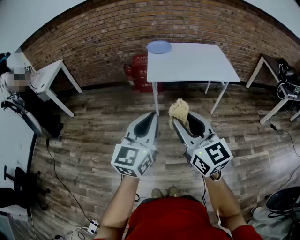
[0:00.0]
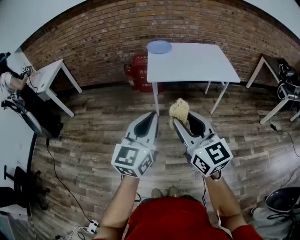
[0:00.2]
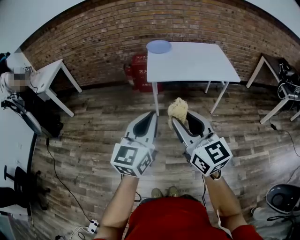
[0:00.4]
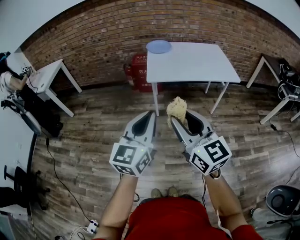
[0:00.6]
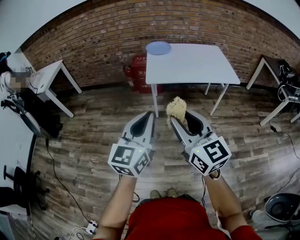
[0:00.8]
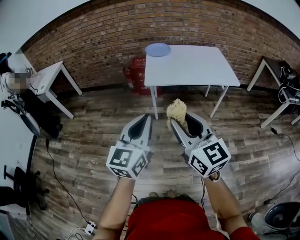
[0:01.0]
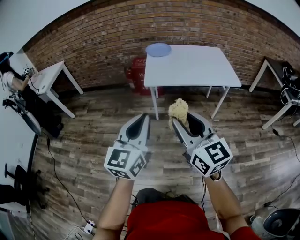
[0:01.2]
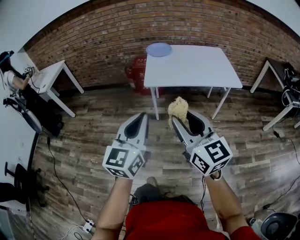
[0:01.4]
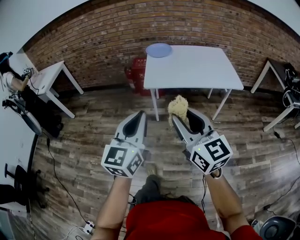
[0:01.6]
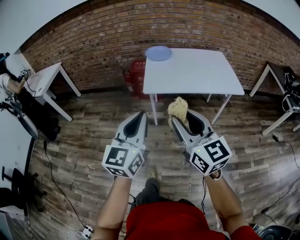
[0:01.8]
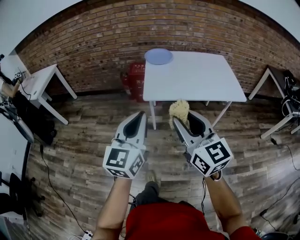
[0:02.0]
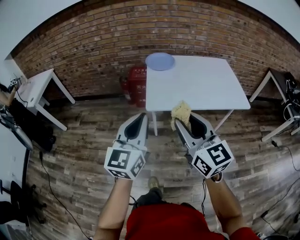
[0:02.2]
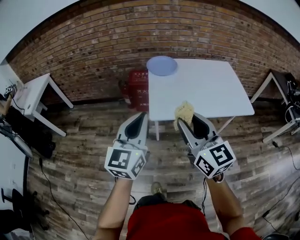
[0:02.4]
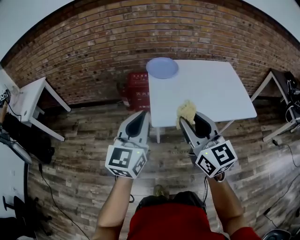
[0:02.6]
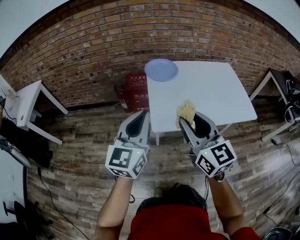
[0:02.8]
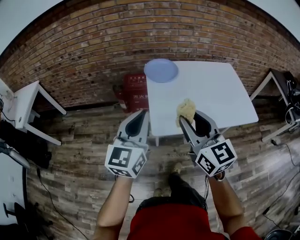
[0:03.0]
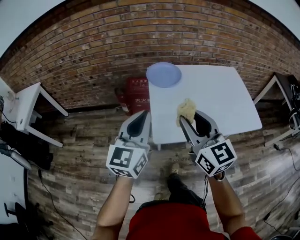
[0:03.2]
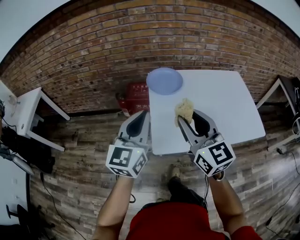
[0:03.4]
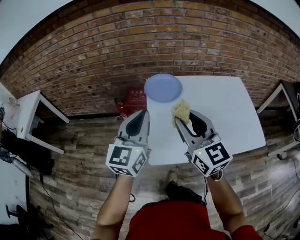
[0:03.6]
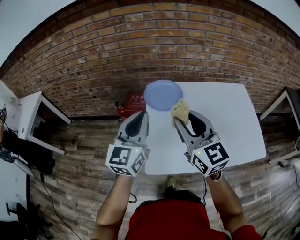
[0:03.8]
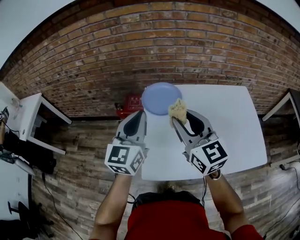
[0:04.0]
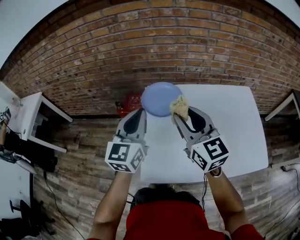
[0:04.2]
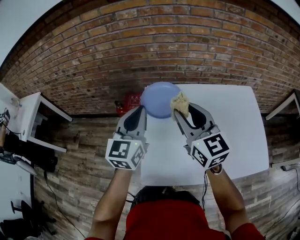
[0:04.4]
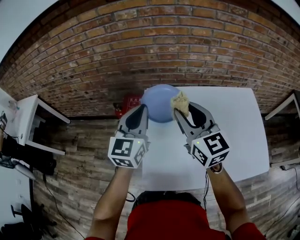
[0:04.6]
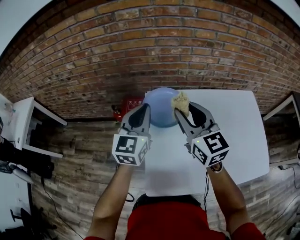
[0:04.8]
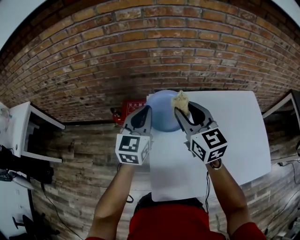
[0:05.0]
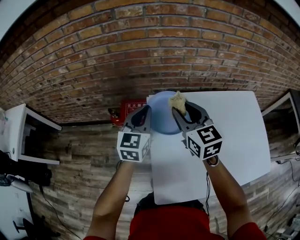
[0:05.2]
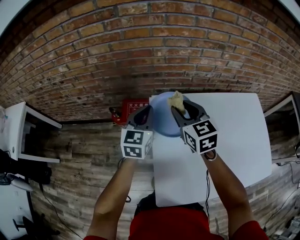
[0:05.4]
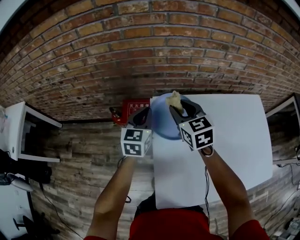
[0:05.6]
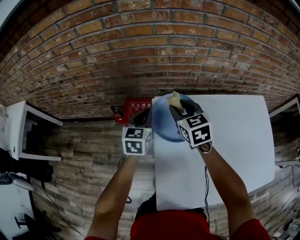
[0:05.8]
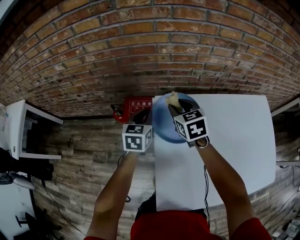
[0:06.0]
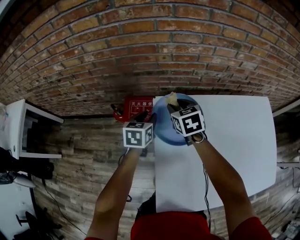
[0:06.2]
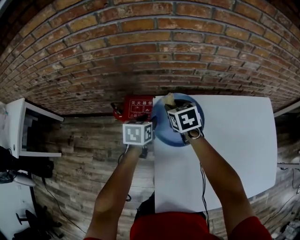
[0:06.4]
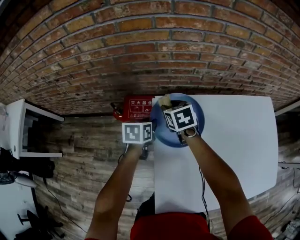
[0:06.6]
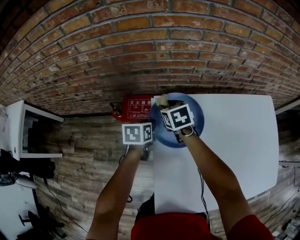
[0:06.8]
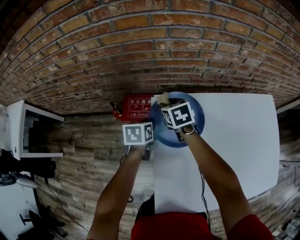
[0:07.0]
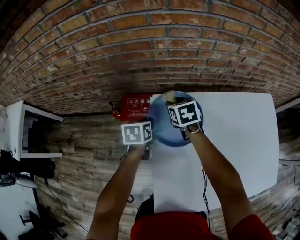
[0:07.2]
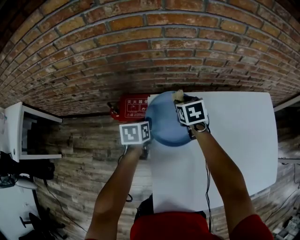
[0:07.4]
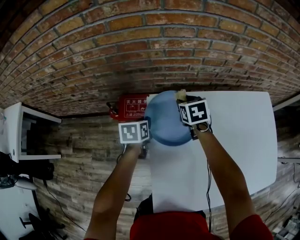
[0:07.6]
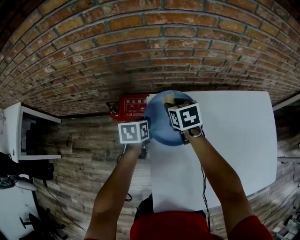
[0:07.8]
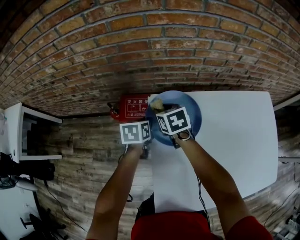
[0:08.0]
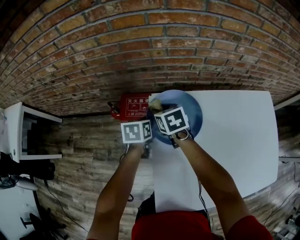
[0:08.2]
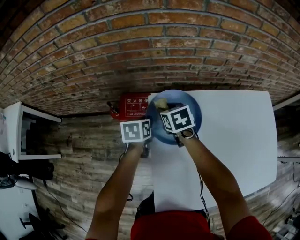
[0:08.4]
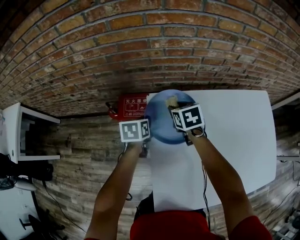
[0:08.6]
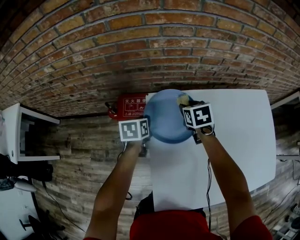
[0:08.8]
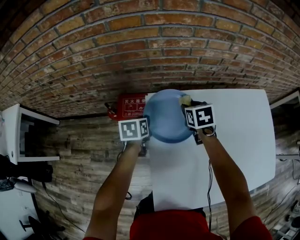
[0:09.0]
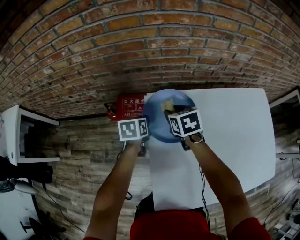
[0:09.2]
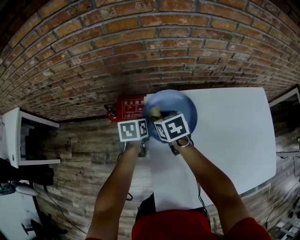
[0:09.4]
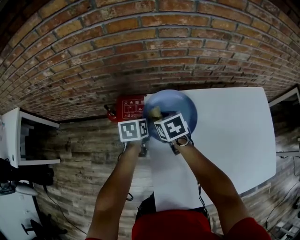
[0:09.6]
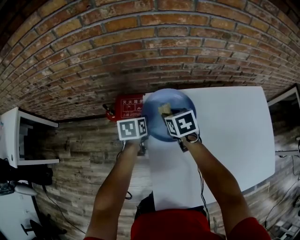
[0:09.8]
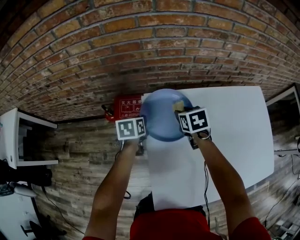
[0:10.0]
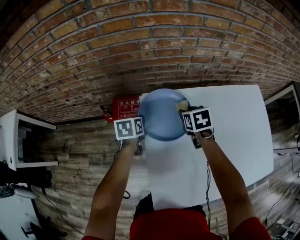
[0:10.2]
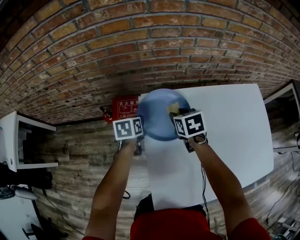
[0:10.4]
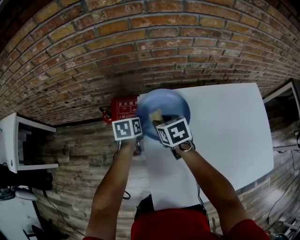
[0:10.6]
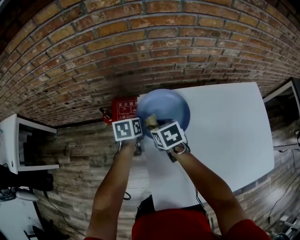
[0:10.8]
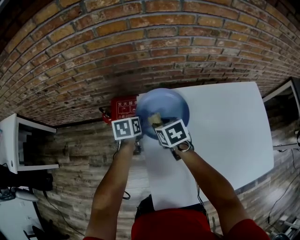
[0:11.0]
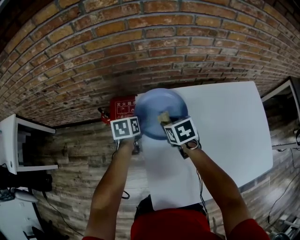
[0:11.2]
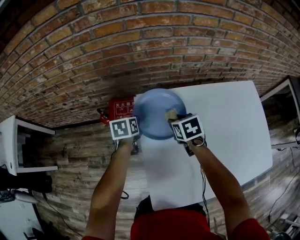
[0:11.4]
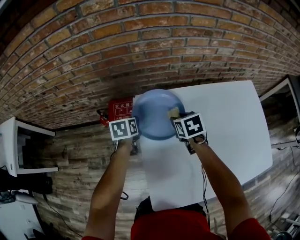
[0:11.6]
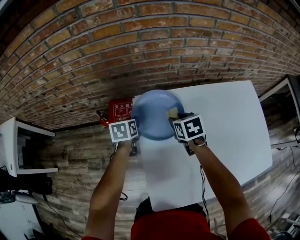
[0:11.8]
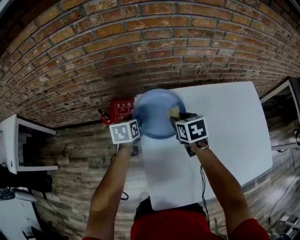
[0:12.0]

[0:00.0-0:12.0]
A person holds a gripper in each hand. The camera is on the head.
0:00.0 to 0:01.6: The right gripper travels forward and to the right by some 10 cm, while the left gripper is displaced forward by about 5 cm.
0:01.6 to 0:03.0: Both grippers move forward, about 40 cm.
0:03.0 to 0:04.4: Both grippers move forward, approximately 30 cm.
0:04.4 to 0:06.0: The grippers both shift forward and downward by about 30 cm. The left gripper changes its angle by approximately 30 degrees; the right gripper points its fingers approximately 30 degrees further downward.
0:06.0 to 0:07.6: The right gripper is displaced downward and to the right by roughly 10 cm. The left gripper moves downward, roughly 10 cm, changes its angle by some 30 degrees, and opens, then closes again.
0:07.6 to 0:09.0: The right gripper reaches approximately 10 cm to the left, then returns.
0:09.0 to 0:10.4: The right gripper moves left and right over about 15 cm, changing direction 2 times.
0:10.4 to 0:12.0: The right gripper reaches approximately 10 cm to the left, then returns. The left gripper opens.

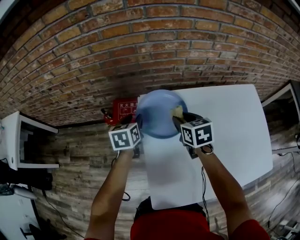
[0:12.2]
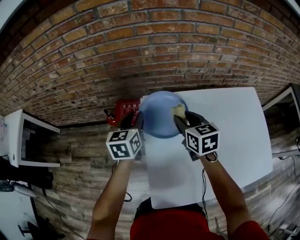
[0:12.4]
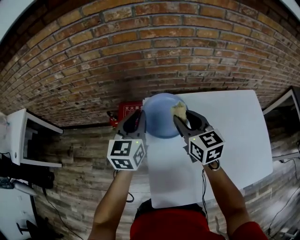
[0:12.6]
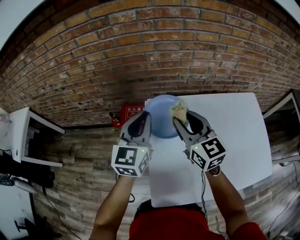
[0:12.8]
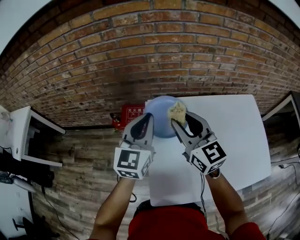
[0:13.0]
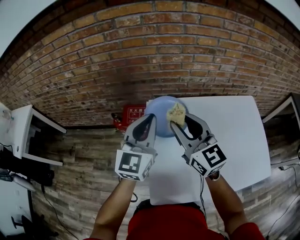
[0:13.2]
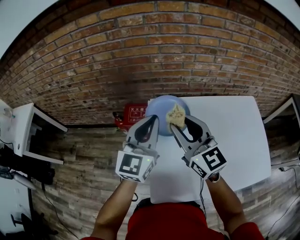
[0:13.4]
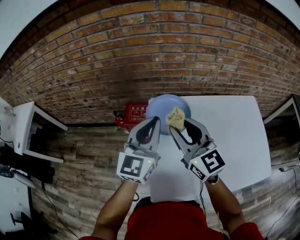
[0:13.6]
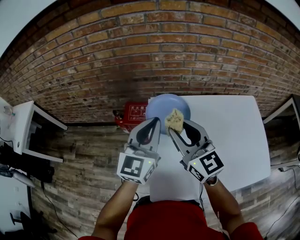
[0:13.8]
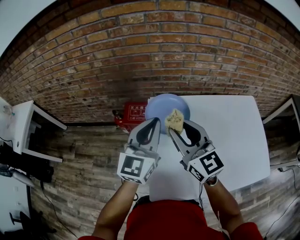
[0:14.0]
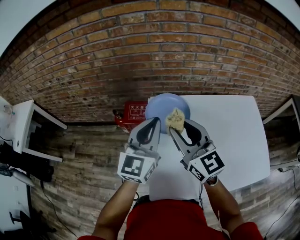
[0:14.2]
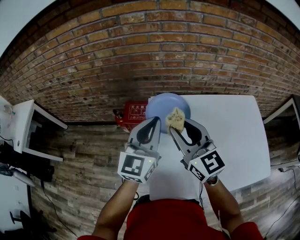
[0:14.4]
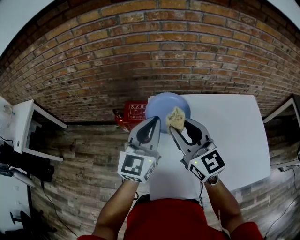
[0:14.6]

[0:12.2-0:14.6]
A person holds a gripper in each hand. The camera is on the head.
0:12.2 to 0:13.4: Both grippers travel together upward and backward, about 25 cm. The left gripper angles its fingers upward, by roughly 40 degrees, and closes its fingers. Meanwhile the right gripper points its fingers roughly 40 degrees further upward.
0:13.4 to 0:14.6: The grippers make only small movements.

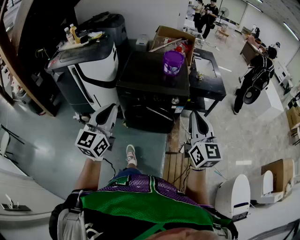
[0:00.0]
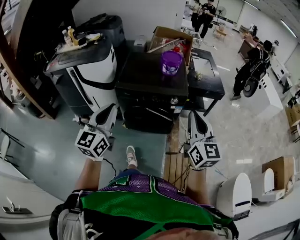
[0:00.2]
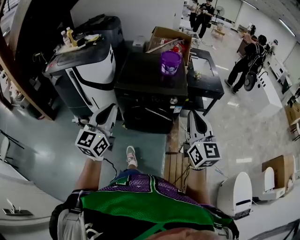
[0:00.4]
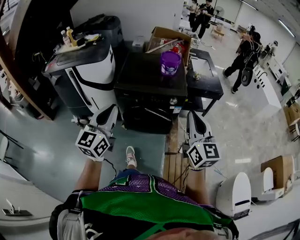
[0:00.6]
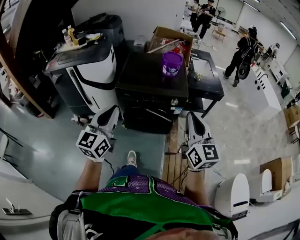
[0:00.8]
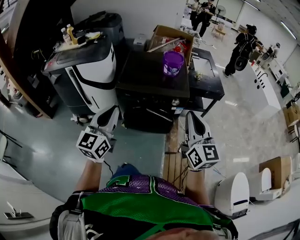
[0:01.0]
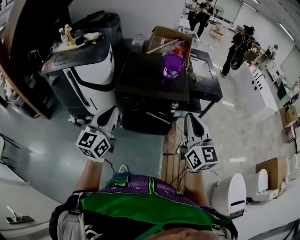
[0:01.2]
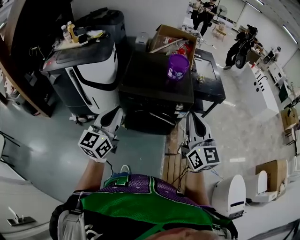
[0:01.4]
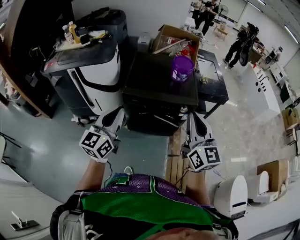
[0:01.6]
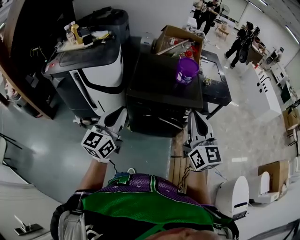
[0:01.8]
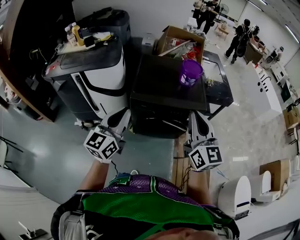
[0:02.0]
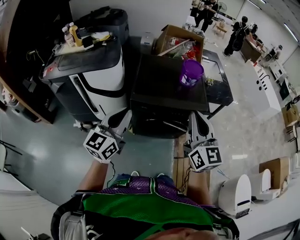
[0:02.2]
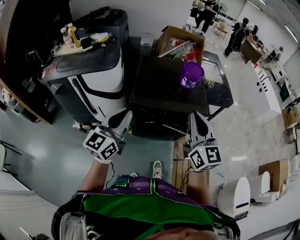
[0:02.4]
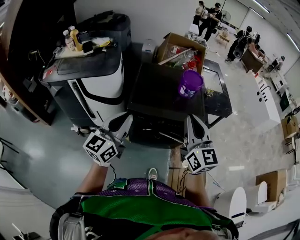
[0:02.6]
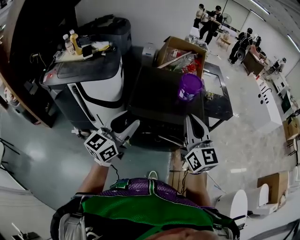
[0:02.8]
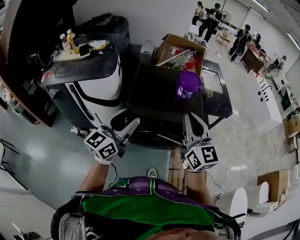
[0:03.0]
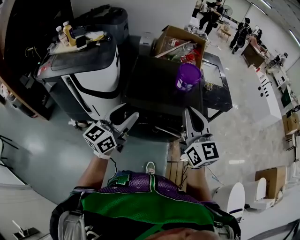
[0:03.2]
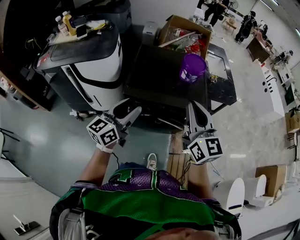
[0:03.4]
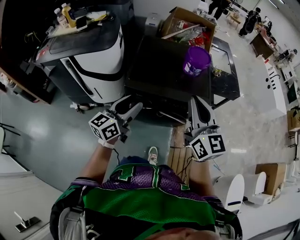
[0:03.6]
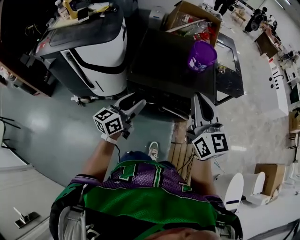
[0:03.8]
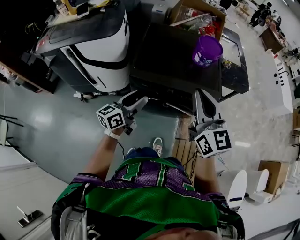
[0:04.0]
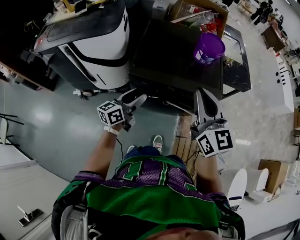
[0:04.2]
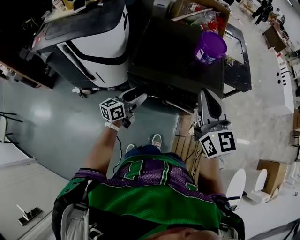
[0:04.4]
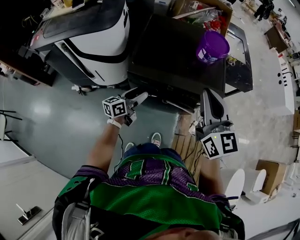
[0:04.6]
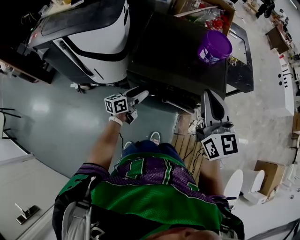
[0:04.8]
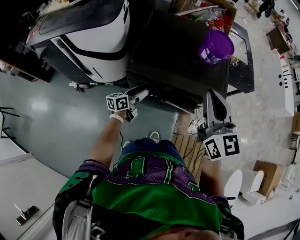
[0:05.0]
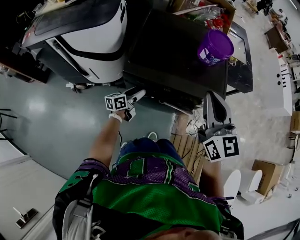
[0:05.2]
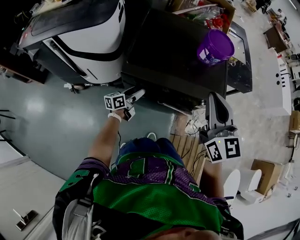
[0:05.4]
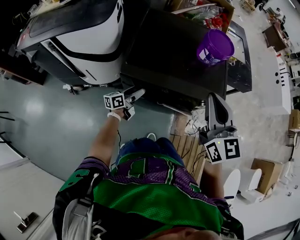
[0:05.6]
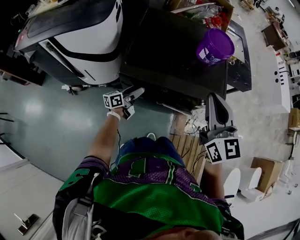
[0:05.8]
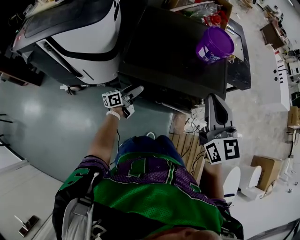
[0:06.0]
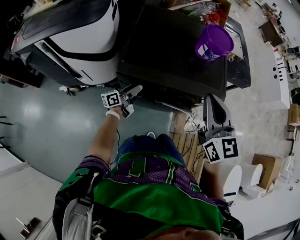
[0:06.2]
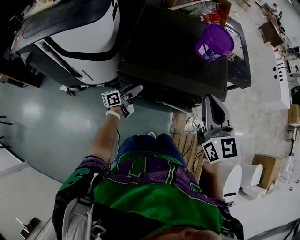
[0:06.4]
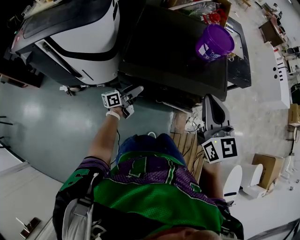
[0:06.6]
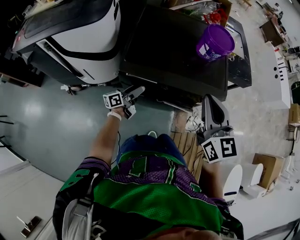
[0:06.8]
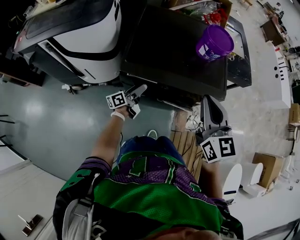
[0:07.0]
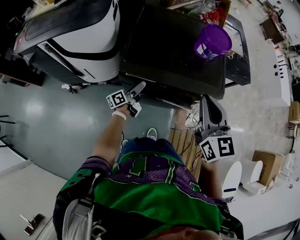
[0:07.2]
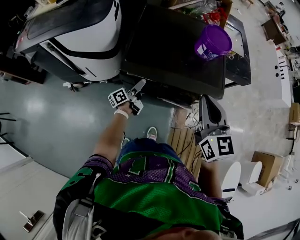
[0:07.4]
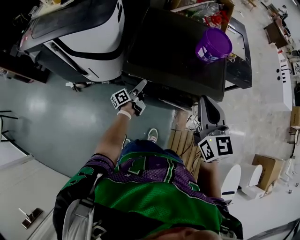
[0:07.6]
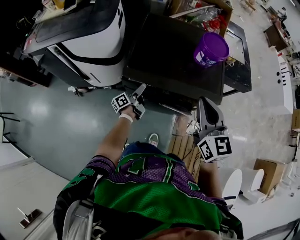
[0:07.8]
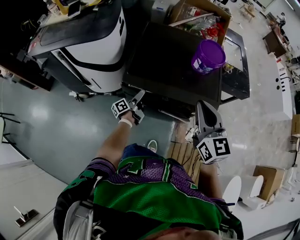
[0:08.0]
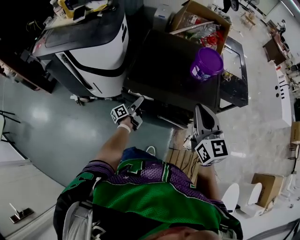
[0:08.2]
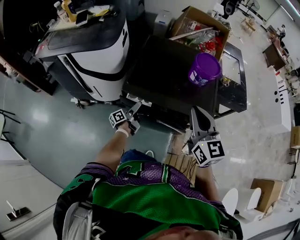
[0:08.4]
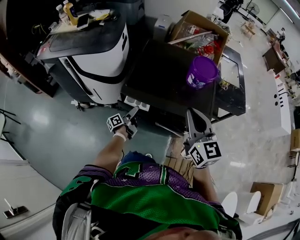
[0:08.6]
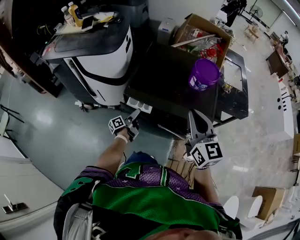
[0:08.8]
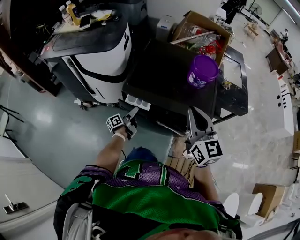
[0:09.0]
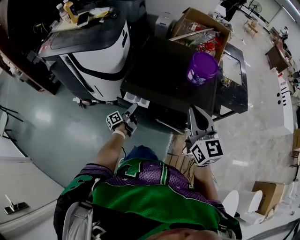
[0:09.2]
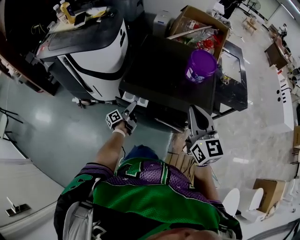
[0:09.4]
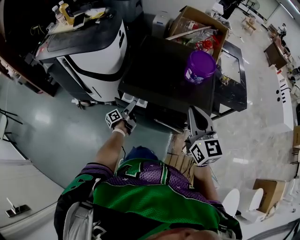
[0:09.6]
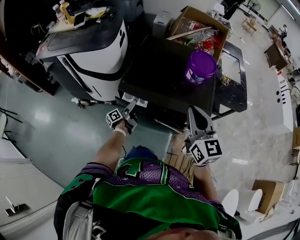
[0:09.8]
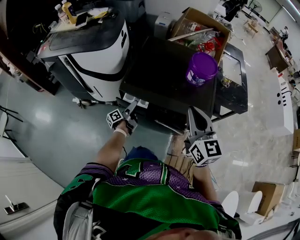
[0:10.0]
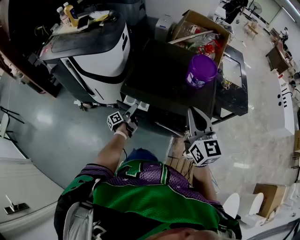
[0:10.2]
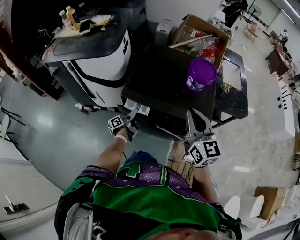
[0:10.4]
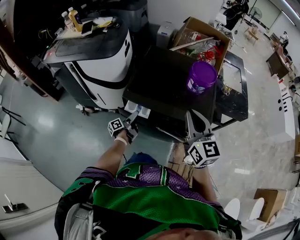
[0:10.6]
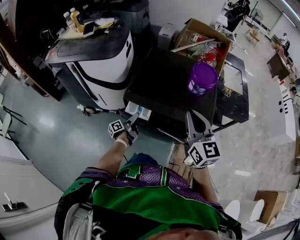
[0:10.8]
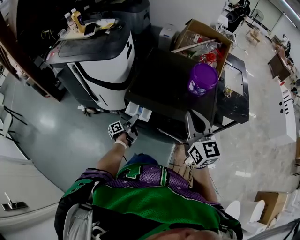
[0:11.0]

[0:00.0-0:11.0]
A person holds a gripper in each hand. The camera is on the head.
0:00.0 to 0:01.6: The left gripper heads forward and to the left, covering about 10 cm, while the right gripper goes some 15 cm to the left and forward.
0:01.6 to 0:03.2: The left gripper travels forward by some 10 cm, and opens its fingers. Meanwhile the right gripper moves forward and to the left, roughly 15 cm.
0:03.2 to 0:04.8: The left gripper heads downward, covering about 35 cm, and rotates some 30 degrees. The right gripper shifts some 15 cm downward and forward.
0:04.8 to 0:06.2: The left gripper is displaced downward and forward by about 10 cm. The right gripper heads downward, covering about 5 cm.
0:06.2 to 0:07.8: The left gripper swivels some 30 degrees.
0:07.8 to 0:09.4: The grippers stay close to where they were, moving slightly.
0:09.4 to 0:11.0: The grippers move only a little.
